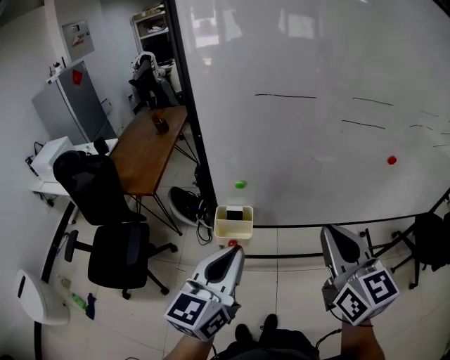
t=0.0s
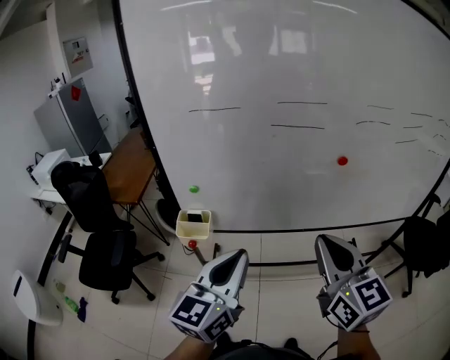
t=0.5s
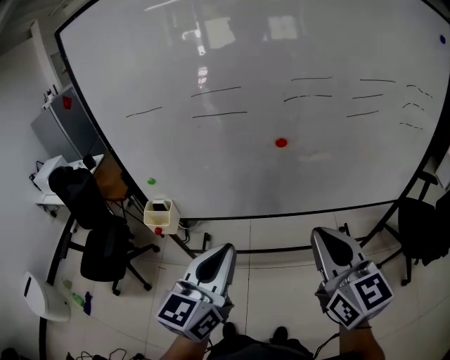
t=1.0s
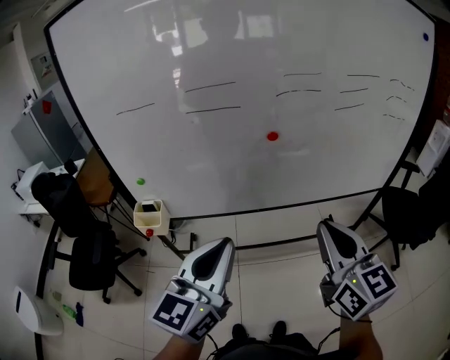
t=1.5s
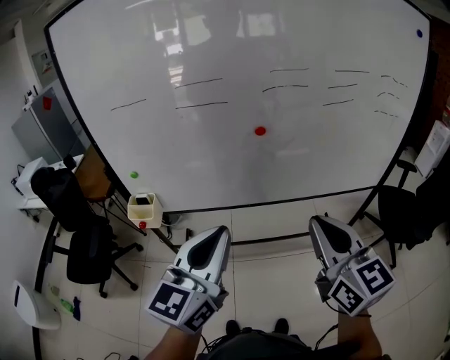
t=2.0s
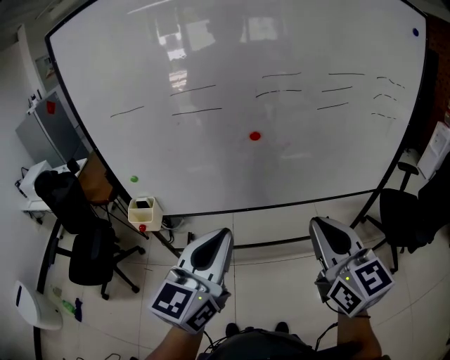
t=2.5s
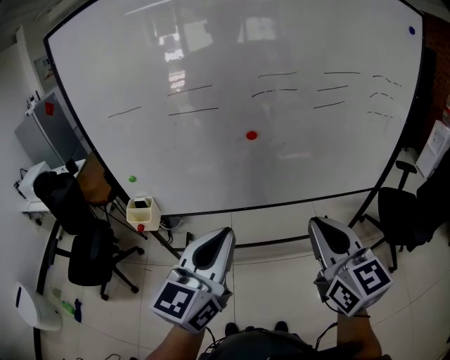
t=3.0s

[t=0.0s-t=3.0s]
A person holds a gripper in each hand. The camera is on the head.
t=0.0s to t=1.5s: Both grippers are carried to the right, approximately 40 cm.
t=1.5s to t=3.0s: The two grippers go some 5 cm to the right.

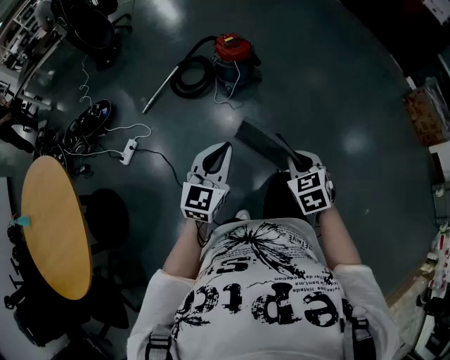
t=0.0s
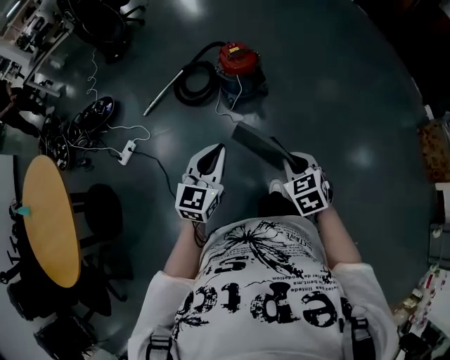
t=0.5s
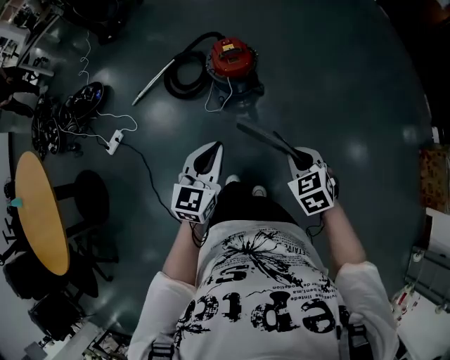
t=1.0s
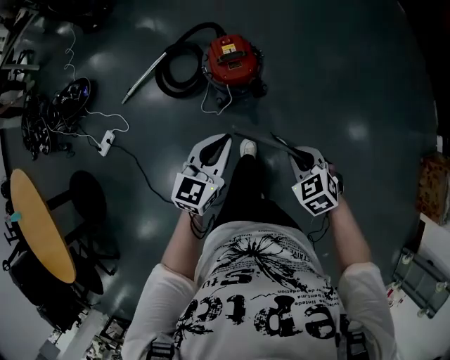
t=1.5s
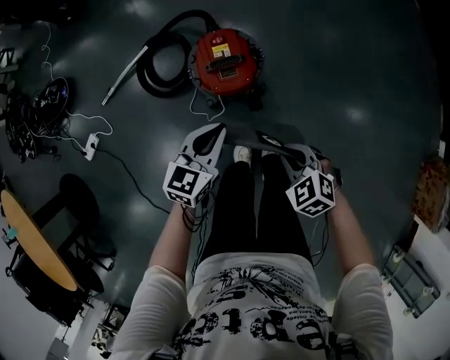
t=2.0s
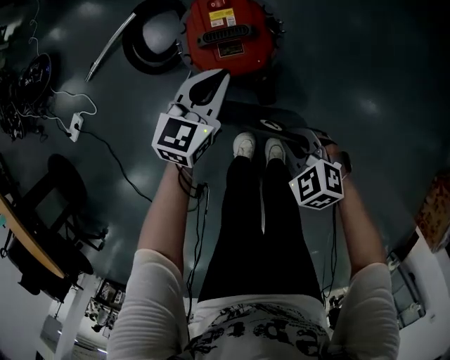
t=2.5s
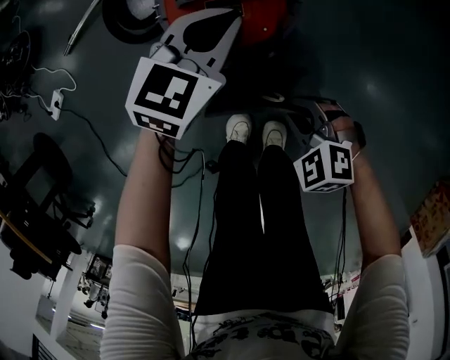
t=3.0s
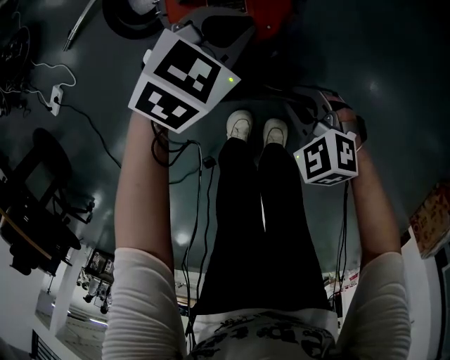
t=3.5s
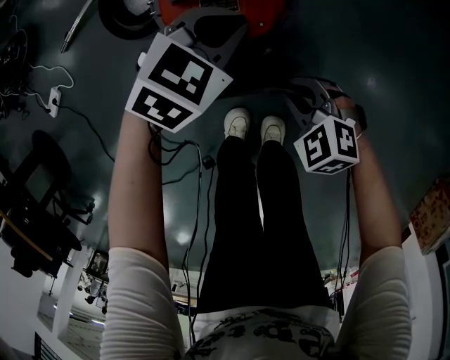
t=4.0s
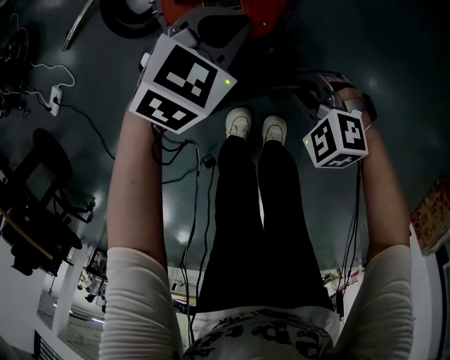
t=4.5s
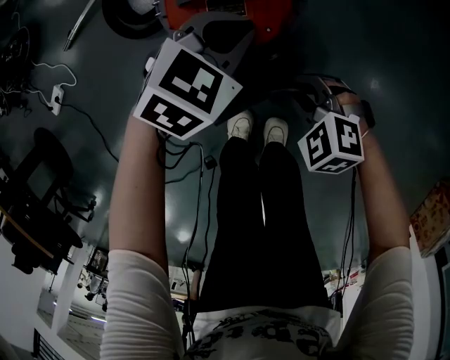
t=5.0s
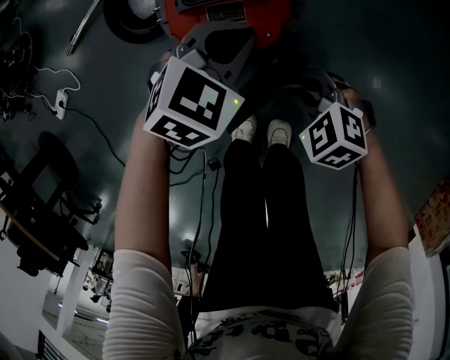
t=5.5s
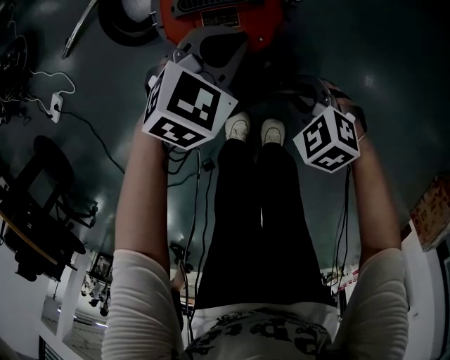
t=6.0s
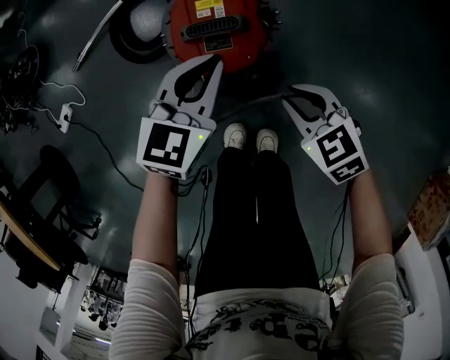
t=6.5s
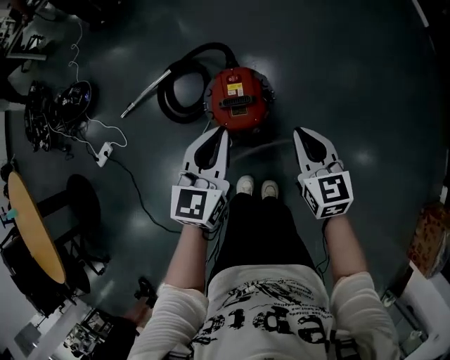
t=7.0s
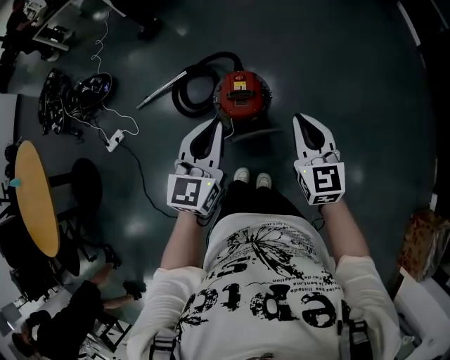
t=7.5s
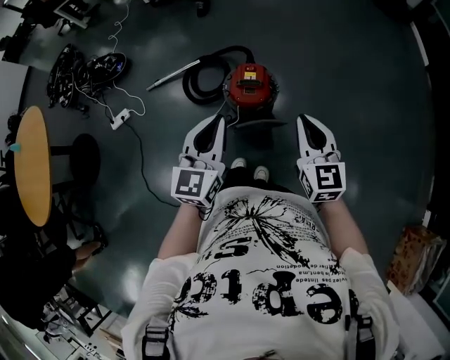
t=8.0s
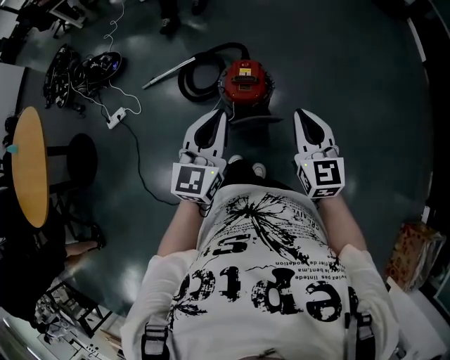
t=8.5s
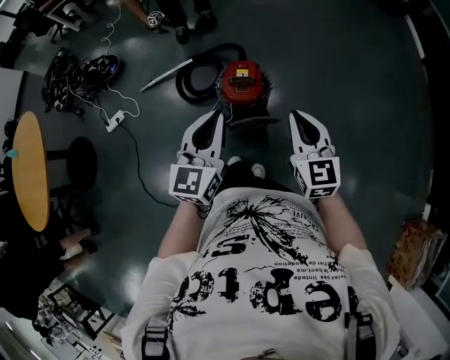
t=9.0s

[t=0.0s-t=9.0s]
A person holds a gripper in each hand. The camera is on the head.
t=0.0s to t=2.0s: The pair of grippers is taken roughly 70 cm. The right gripper rotates approximately 40 degrees. Meanwhile the left gripper changes its angle by some 30 degrees.
t=2.0s to t=4.5s: The left gripper heads downward and forward, covering roughly 30 cm, and turns by roughly 30 degrees, while the right gripper is displaced downward by some 30 cm, and swivels roughly 30 degrees.
t=4.5s to t=7.0s: The two grippers go about 40 cm upward. The right gripper tilts its fingers approximately 30 degrees upward, while the left gripper changes its angle by some 50 degrees.
t=7.0s to t=9.0s: The grippers both shift upward and backward by about 25 cm.

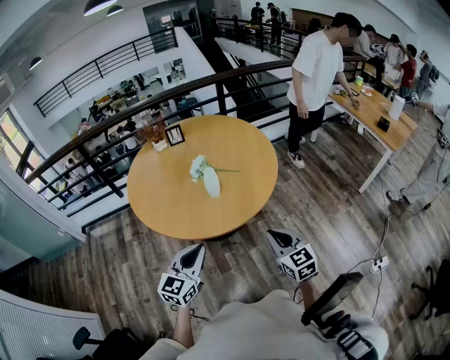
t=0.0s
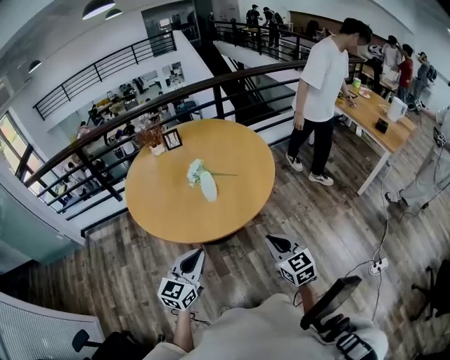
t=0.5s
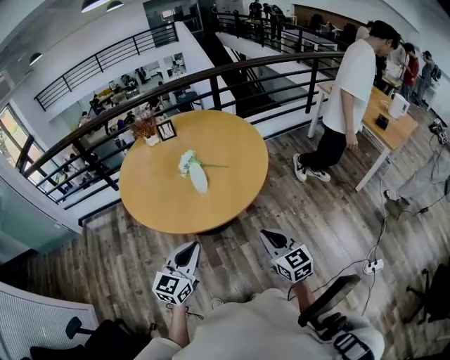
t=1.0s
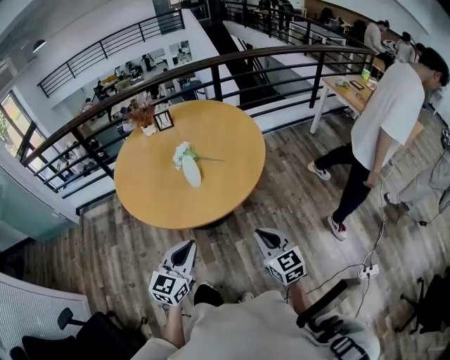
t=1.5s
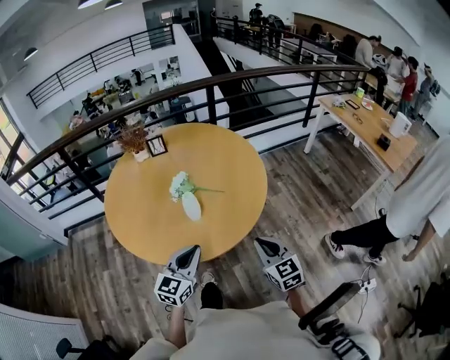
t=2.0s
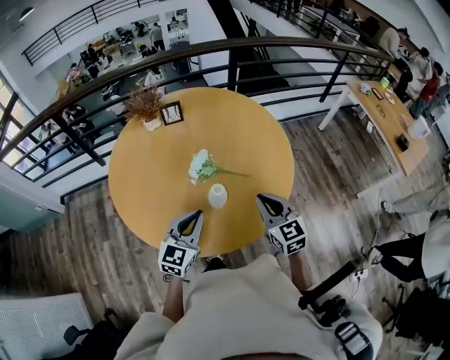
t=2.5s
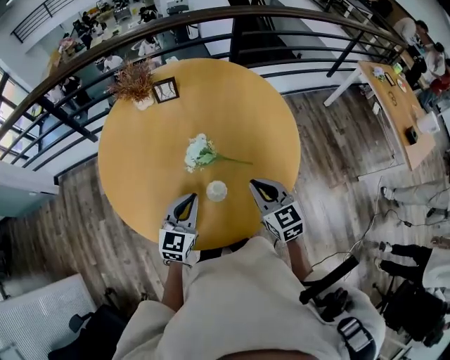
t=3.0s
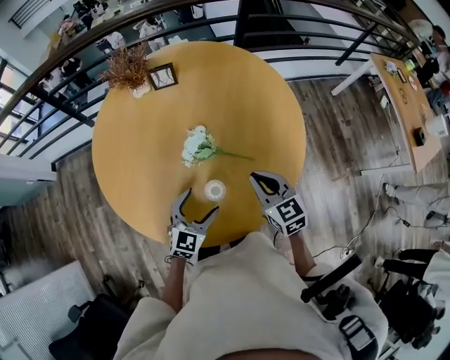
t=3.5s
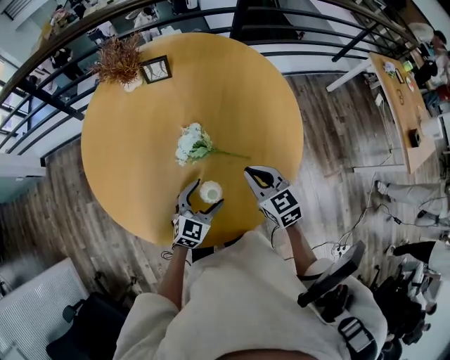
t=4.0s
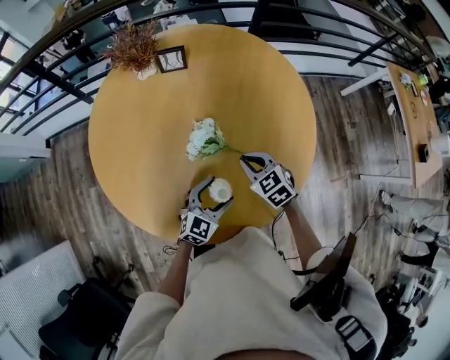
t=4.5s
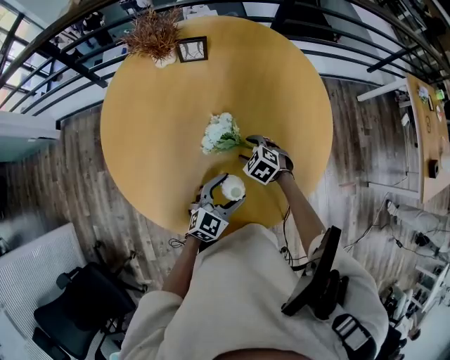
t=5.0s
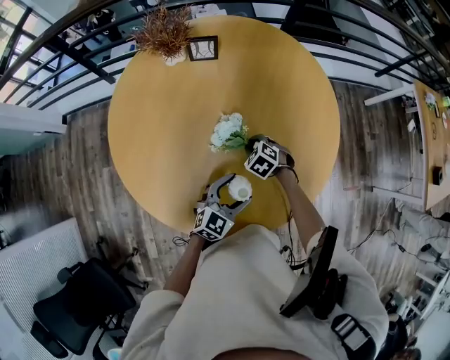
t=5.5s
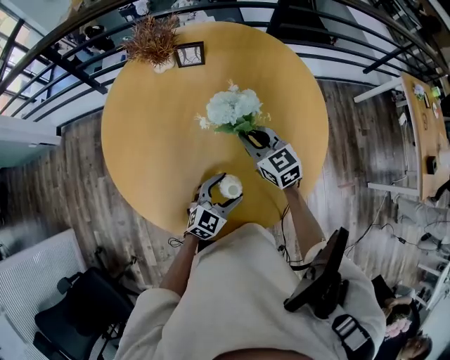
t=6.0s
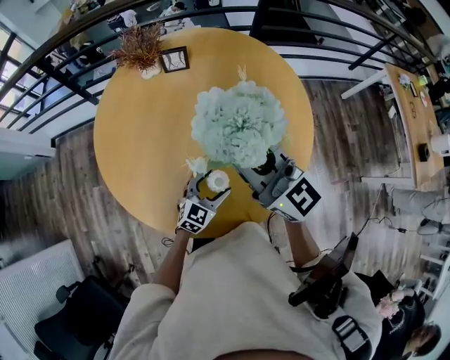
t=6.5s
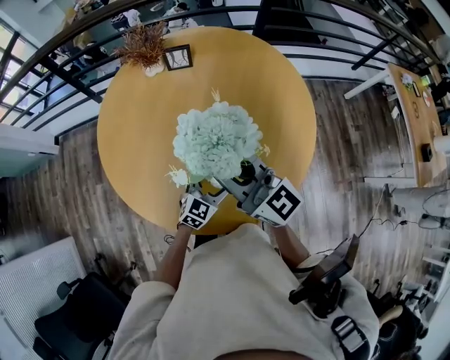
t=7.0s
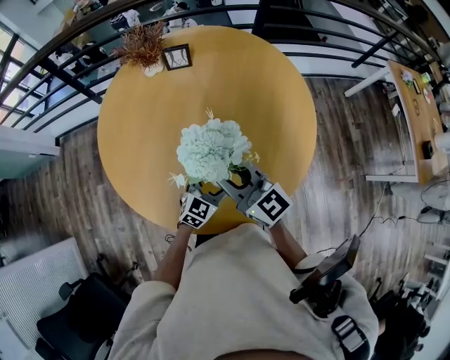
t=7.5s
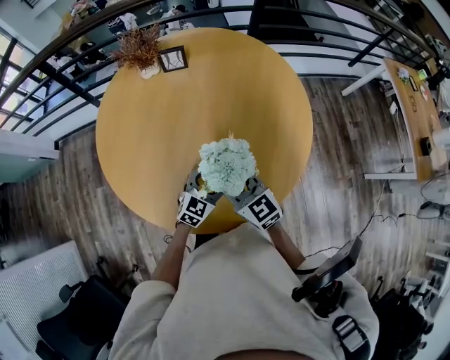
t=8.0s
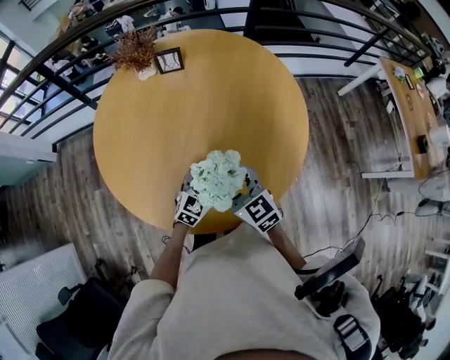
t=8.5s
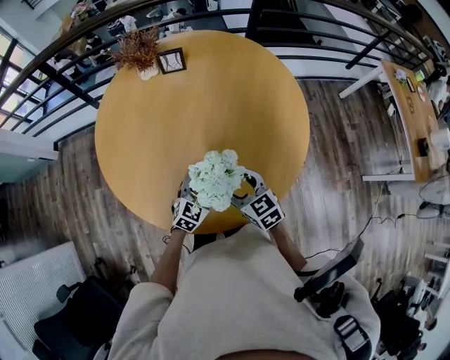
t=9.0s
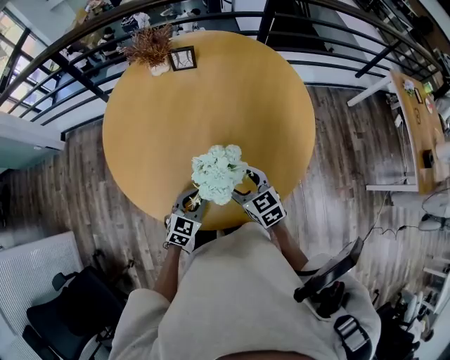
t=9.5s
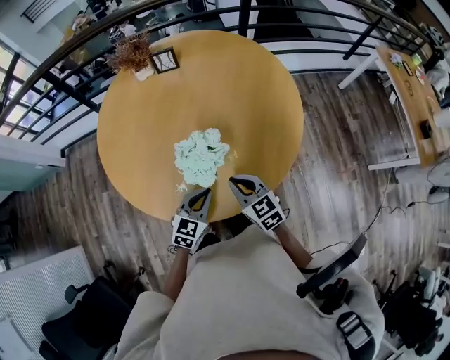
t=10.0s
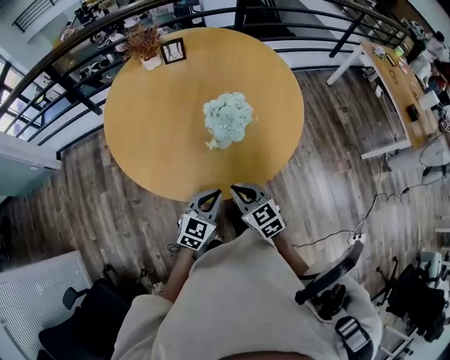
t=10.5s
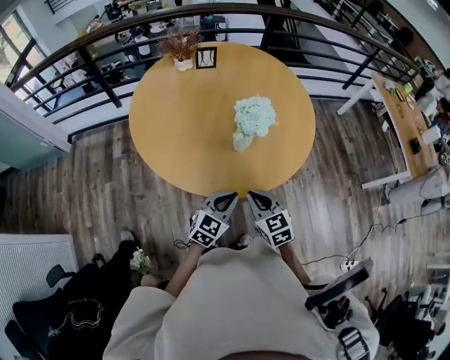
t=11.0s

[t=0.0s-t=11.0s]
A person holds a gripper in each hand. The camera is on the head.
t=0.0s to t=2.0s: The left gripper is displaced forward and to the right by some 10 cm, while the right gripper moves forward, approximately 10 cm.
t=2.0s to t=3.5s: The right gripper travels forward and to the left by about 25 cm; the left gripper moves forward, downward and to the left, some 20 cm, and opens its fingers.
t=3.5s to t=5.5s: The left gripper is displaced to the right by some 5 cm. The right gripper goes about 25 cm downward, forward and to the left, tilts its fingers roughly 40 degrees downward, and opens and closes again.
t=5.5s to t=7.5s: The right gripper goes about 30 cm upward, and angles its fingers upward, by some 70 degrees.
t=7.5s to t=9.0s: The right gripper is displaced downward by roughly 15 cm, points its fingers some 30 degrees further downward, and opens up.
t=9.0s to t=11.0s: The left gripper shifts roughly 20 cm backward and upward, and closes its fingers. Meanwhile the right gripper goes some 15 cm backward, and closes.

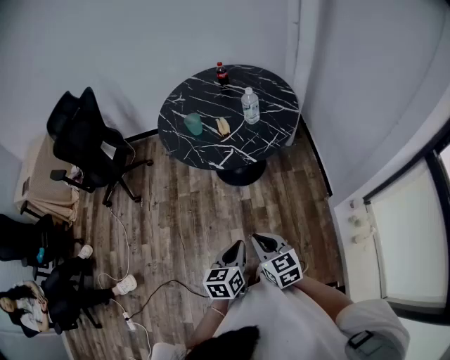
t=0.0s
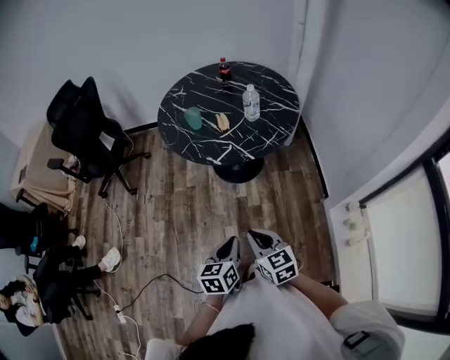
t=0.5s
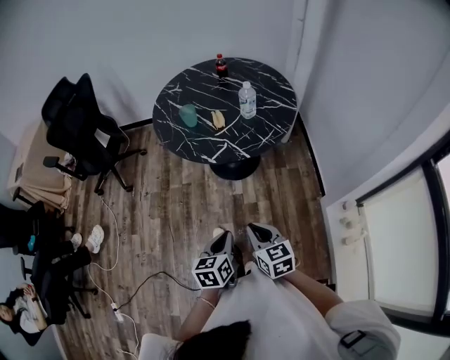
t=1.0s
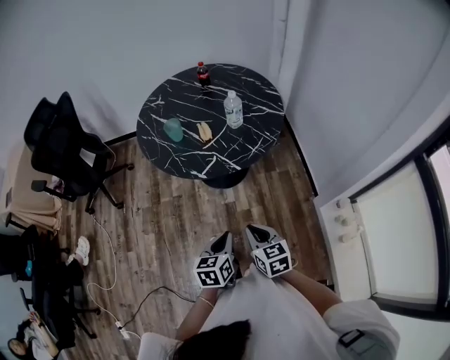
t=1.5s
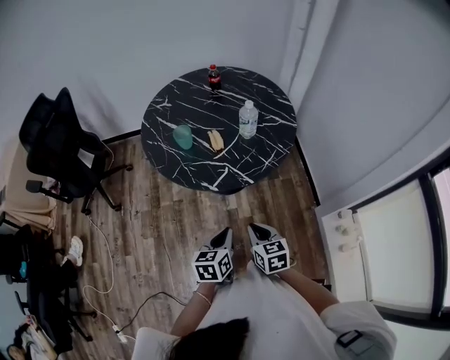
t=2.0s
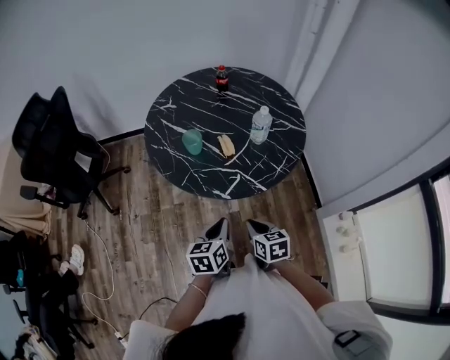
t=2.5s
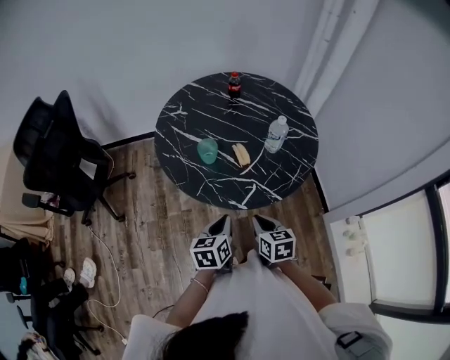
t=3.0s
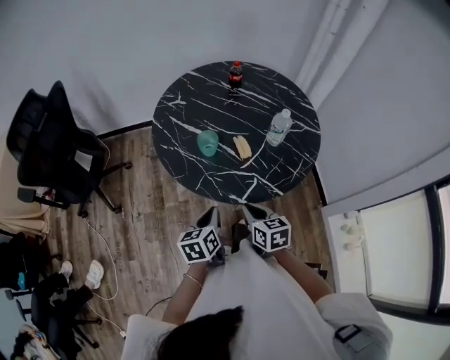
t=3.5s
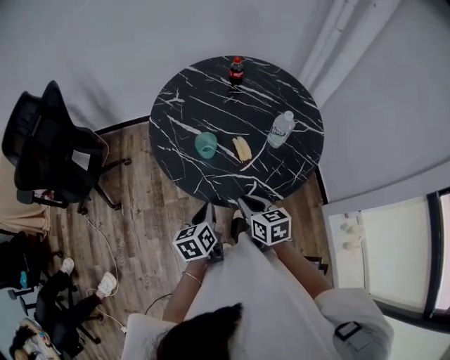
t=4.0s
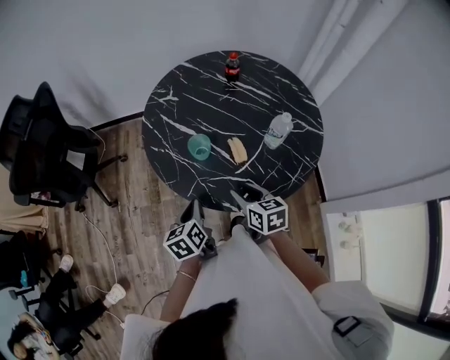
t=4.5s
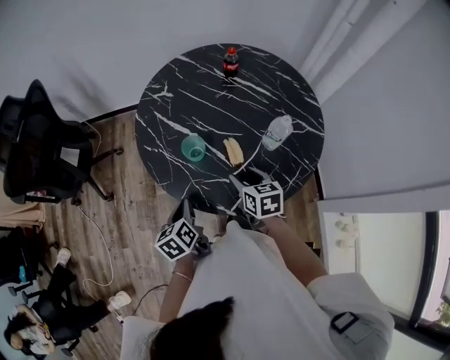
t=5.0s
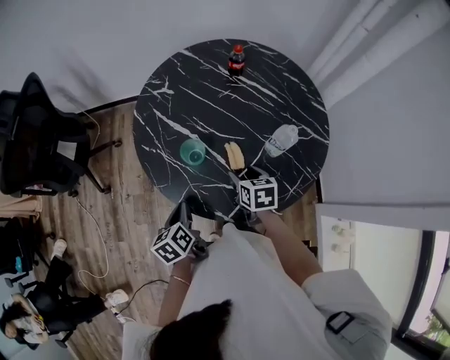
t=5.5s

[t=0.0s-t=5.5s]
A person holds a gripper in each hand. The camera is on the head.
t=0.0s to t=2.0s: Both grippers move forward, some 15 cm.
t=2.0s to t=3.5s: The right gripper is displaced forward and to the left by approximately 20 cm, while the left gripper travels to the left and forward by some 20 cm.
t=3.5s to t=5.5s: The right gripper shifts approximately 20 cm forward, and opens up; the left gripper shifts some 10 cm forward, and turns by approximately 20 degrees.
